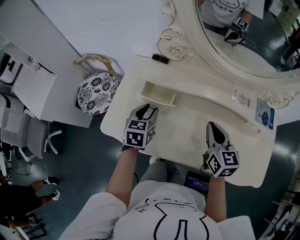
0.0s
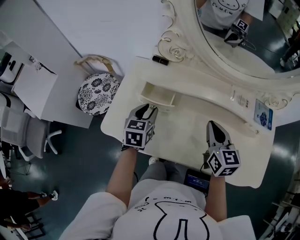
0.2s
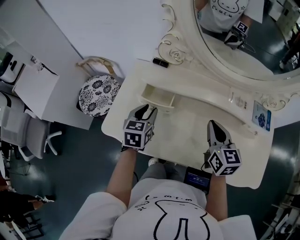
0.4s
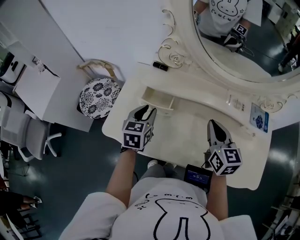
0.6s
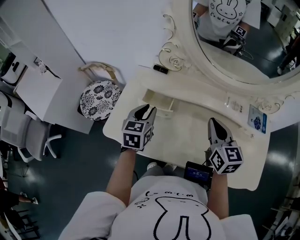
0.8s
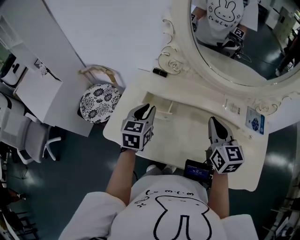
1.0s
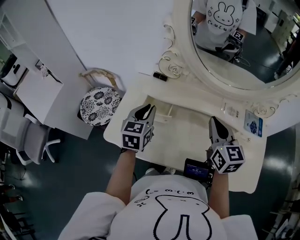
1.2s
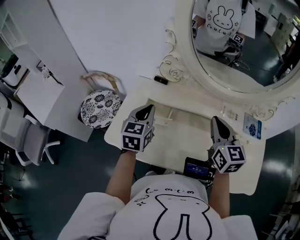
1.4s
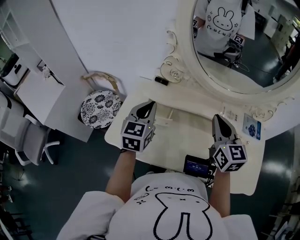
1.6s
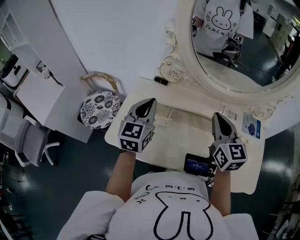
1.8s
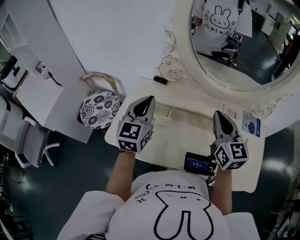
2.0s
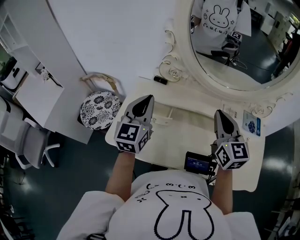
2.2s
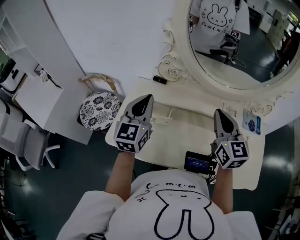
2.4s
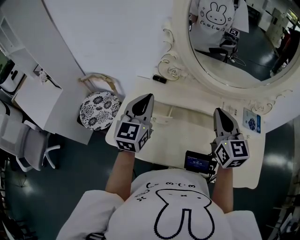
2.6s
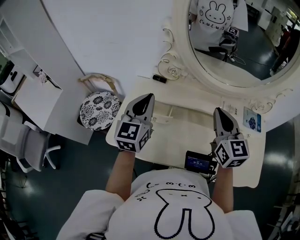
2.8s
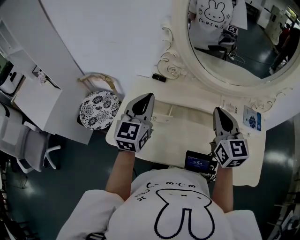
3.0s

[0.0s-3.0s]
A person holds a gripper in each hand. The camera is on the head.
0.0s to 1.6s: Both grippers move upward, some 15 cm. The left gripper changes its angle by approximately 20 degrees, and closes.
1.6s to 3.0s: The grippers stay close to where they were, moving slightly.

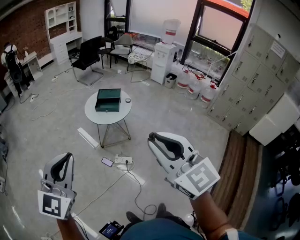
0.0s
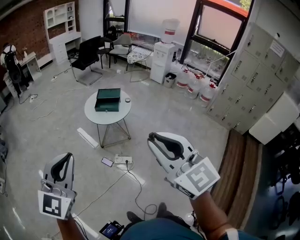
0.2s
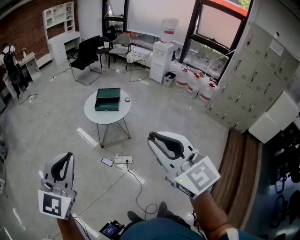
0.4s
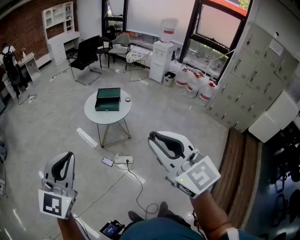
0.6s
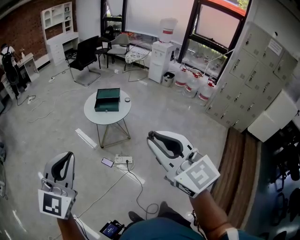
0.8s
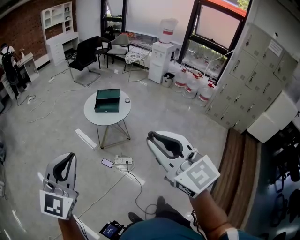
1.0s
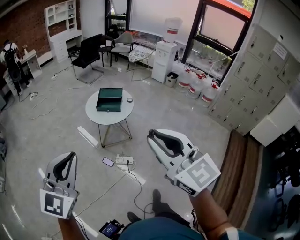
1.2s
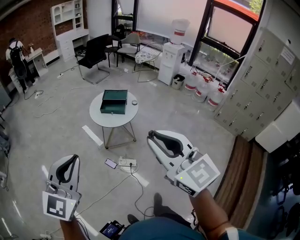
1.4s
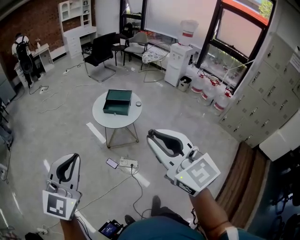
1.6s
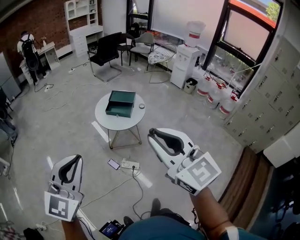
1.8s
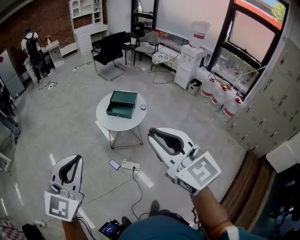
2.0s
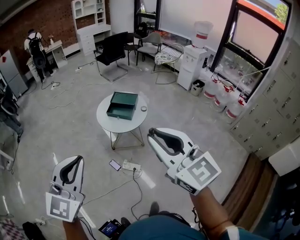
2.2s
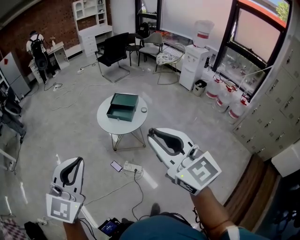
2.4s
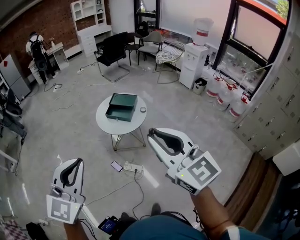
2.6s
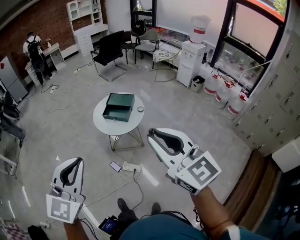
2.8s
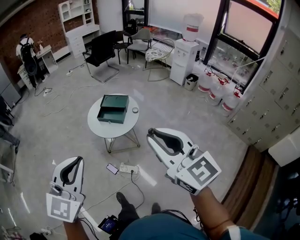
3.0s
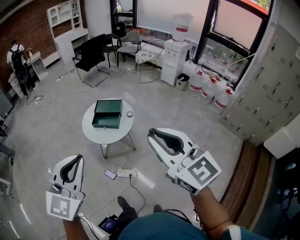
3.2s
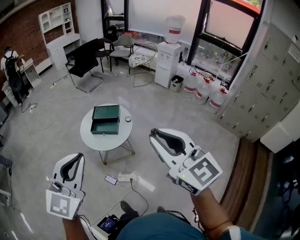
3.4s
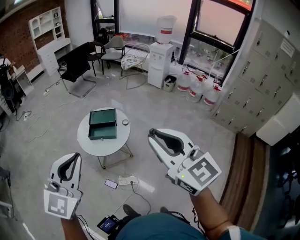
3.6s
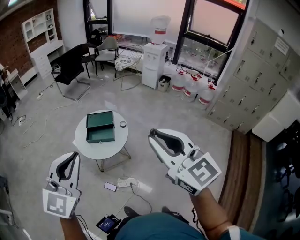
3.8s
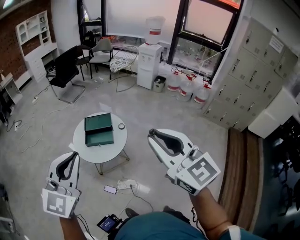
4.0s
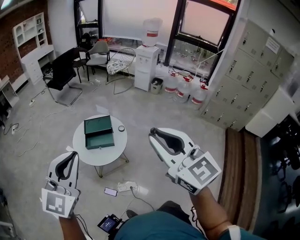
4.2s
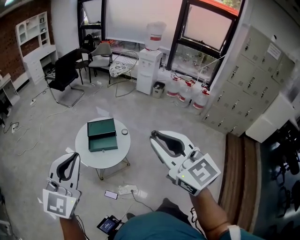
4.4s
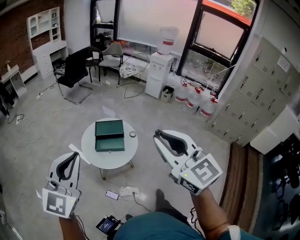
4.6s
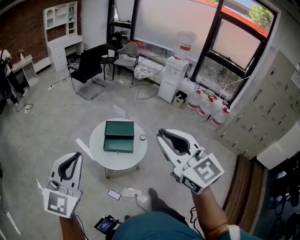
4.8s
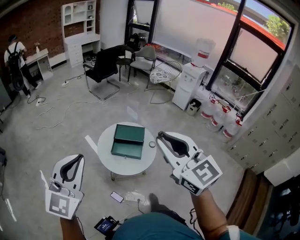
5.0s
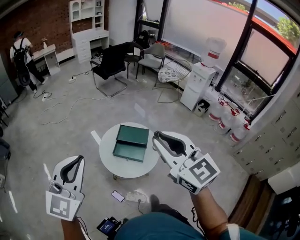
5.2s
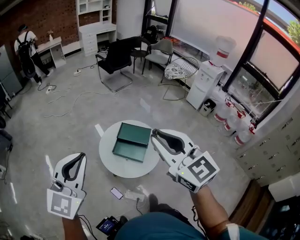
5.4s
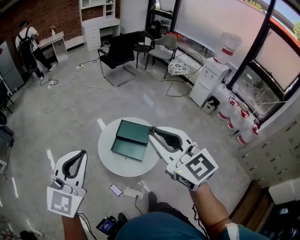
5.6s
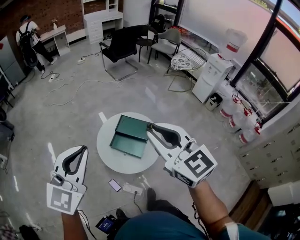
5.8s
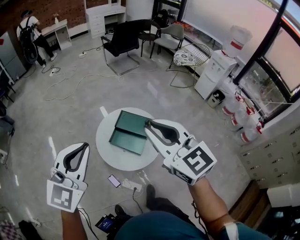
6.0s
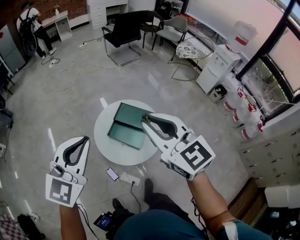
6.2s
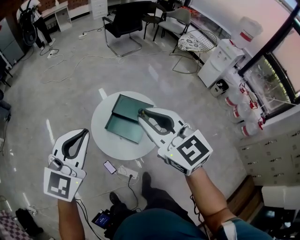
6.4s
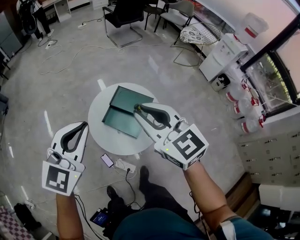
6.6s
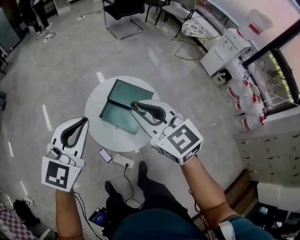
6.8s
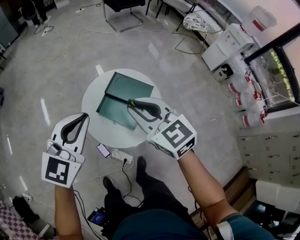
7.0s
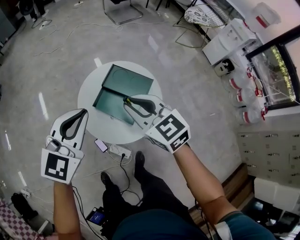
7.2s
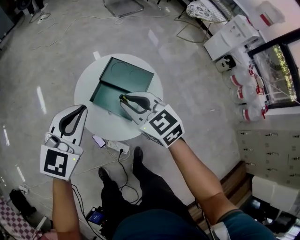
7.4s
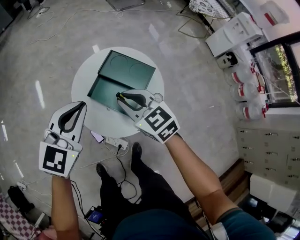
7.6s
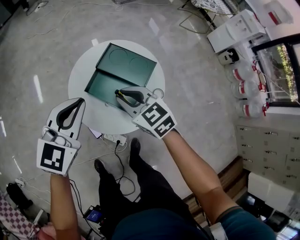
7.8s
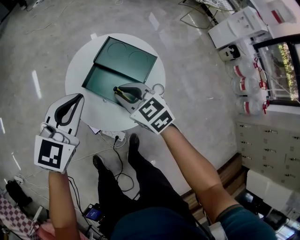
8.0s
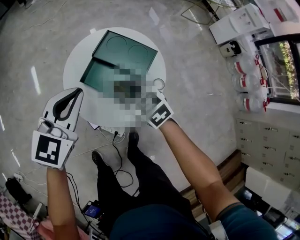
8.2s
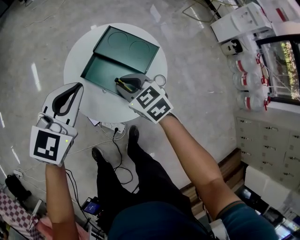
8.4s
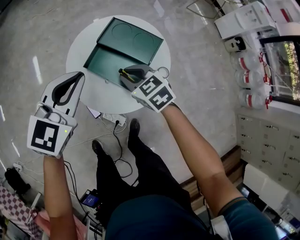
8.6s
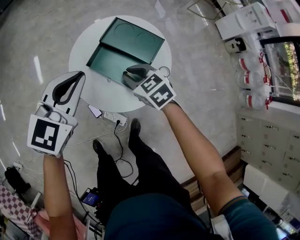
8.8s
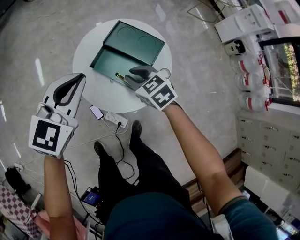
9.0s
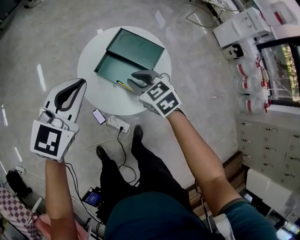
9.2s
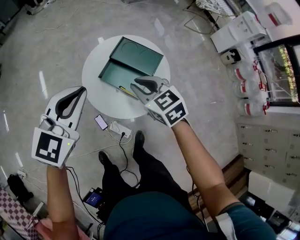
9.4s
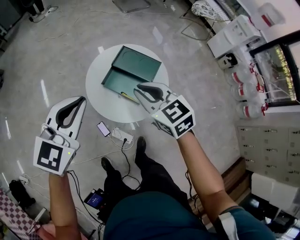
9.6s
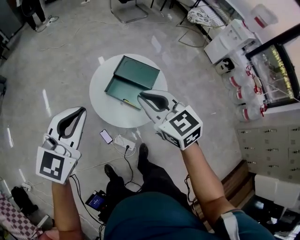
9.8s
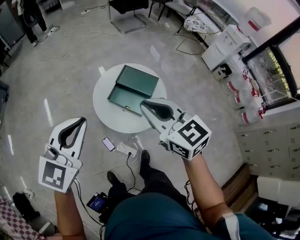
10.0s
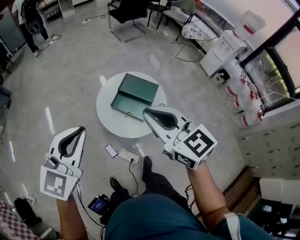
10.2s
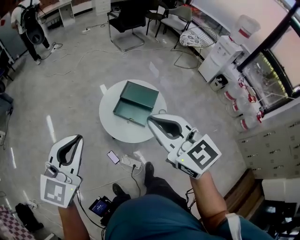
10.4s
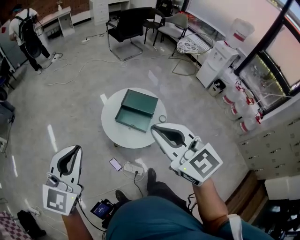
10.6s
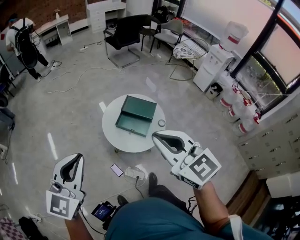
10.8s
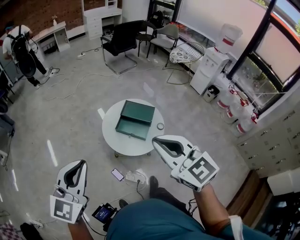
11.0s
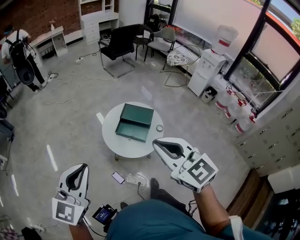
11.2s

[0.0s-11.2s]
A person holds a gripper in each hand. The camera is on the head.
0.0s to 1.6s: Both grippers travel together forward, roughly 15 cm.
1.6s to 3.2s: The two grippers go about 30 cm to the right and forward.
3.2s to 4.8s: The two grippers go about 40 cm to the left and forward.
4.8s to 6.4s: The left gripper shifts some 40 cm forward, to the right and downward, and turns by roughly 20 degrees, while the right gripper heads forward and downward, covering roughly 40 cm, and swivels some 30 degrees.
6.4s to 8.0s: Both grippers travel together downward, approximately 40 cm. The right gripper turns by roughly 30 degrees.
8.0s to 9.6s: The left gripper is displaced upward, backward and to the left by some 25 cm; the right gripper shifts approximately 25 cm upward and backward.
9.6s to 11.2s: The left gripper is displaced backward, upward and to the left by roughly 40 cm, while the right gripper goes about 40 cm upward and backward.

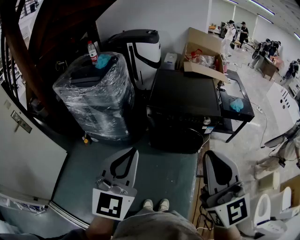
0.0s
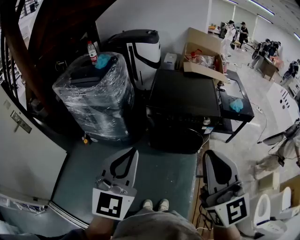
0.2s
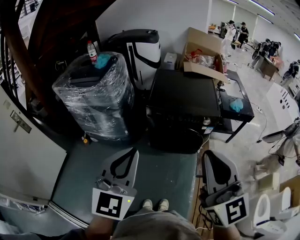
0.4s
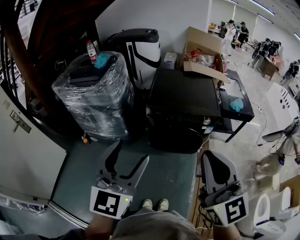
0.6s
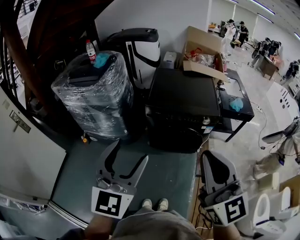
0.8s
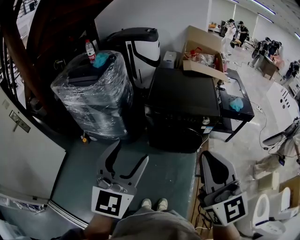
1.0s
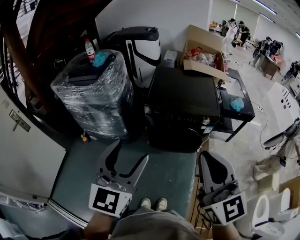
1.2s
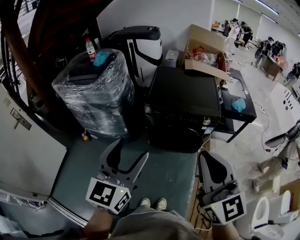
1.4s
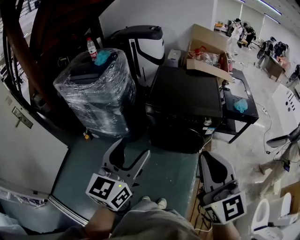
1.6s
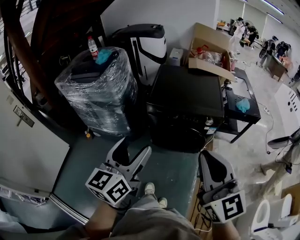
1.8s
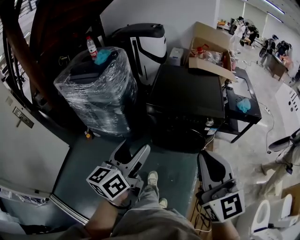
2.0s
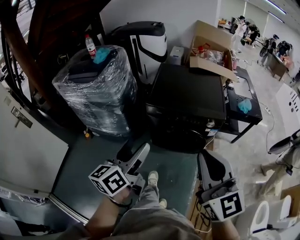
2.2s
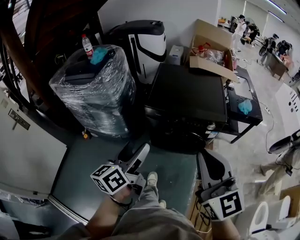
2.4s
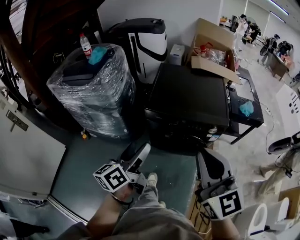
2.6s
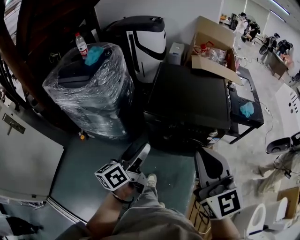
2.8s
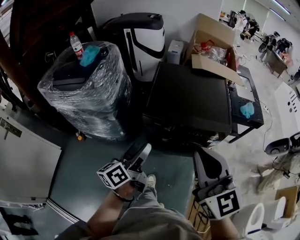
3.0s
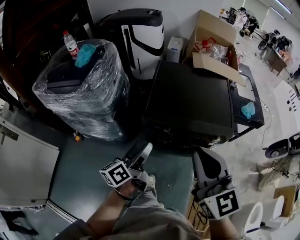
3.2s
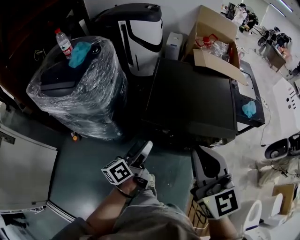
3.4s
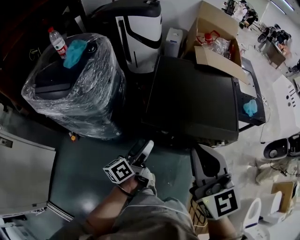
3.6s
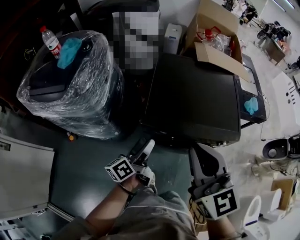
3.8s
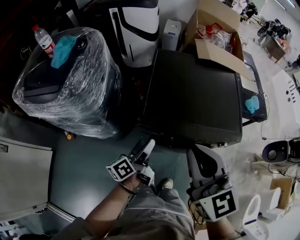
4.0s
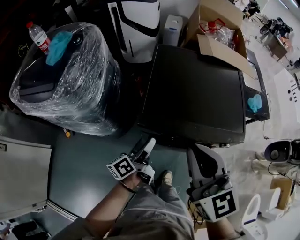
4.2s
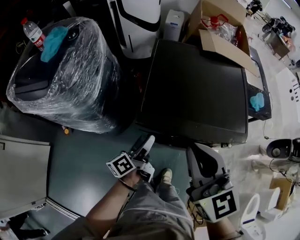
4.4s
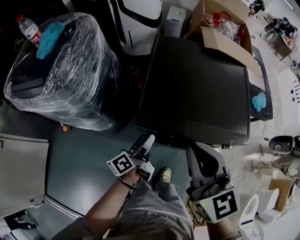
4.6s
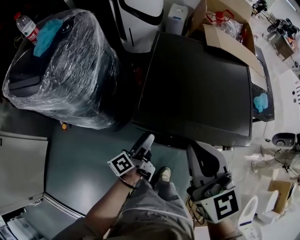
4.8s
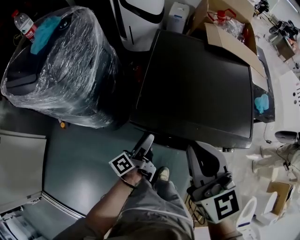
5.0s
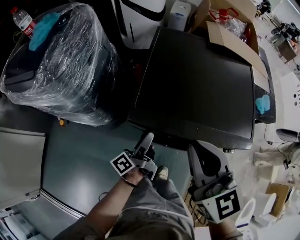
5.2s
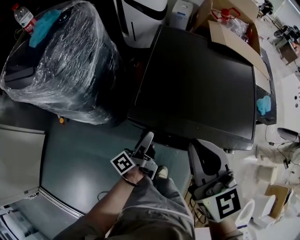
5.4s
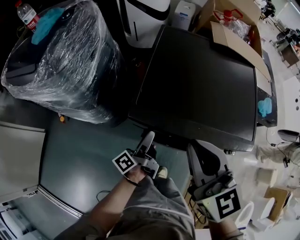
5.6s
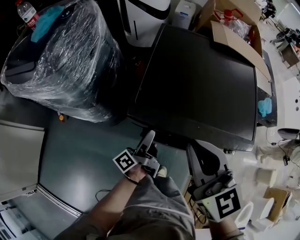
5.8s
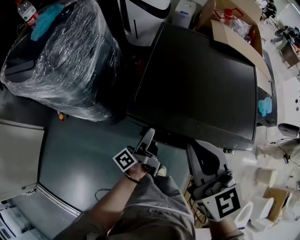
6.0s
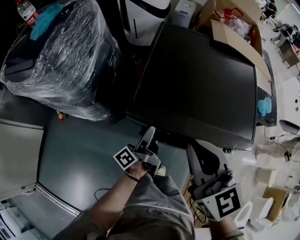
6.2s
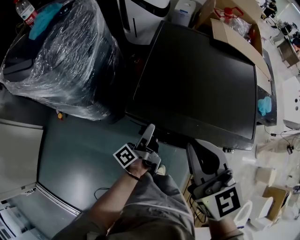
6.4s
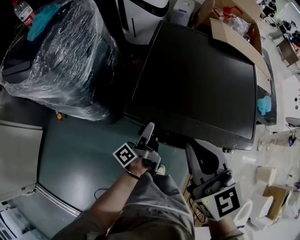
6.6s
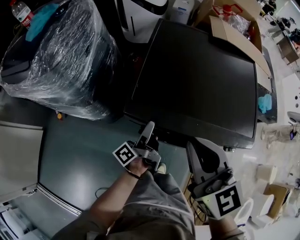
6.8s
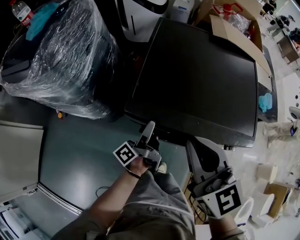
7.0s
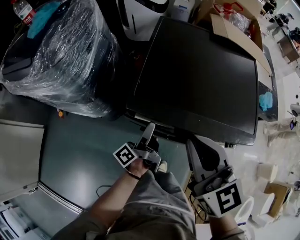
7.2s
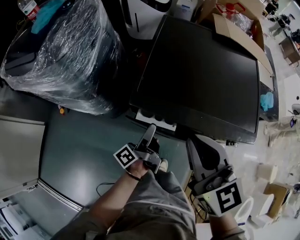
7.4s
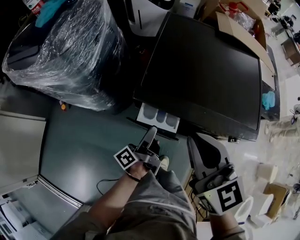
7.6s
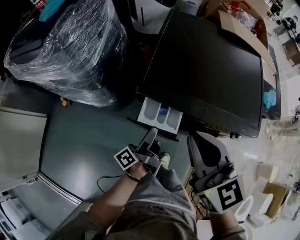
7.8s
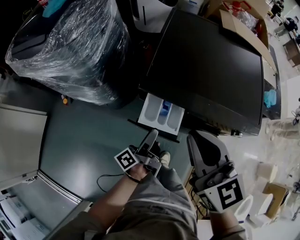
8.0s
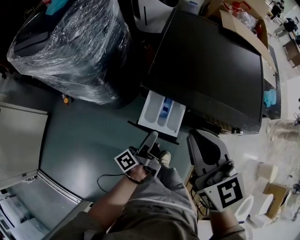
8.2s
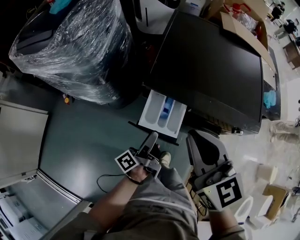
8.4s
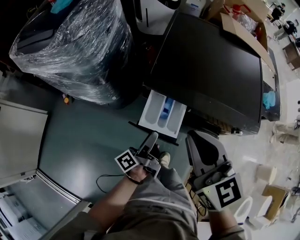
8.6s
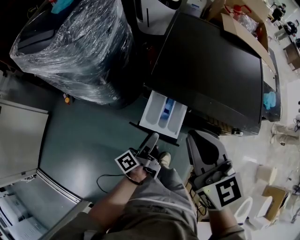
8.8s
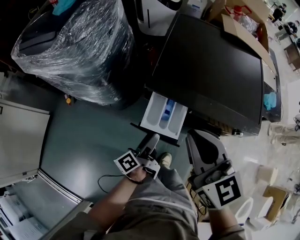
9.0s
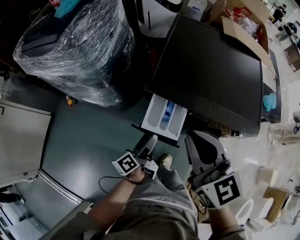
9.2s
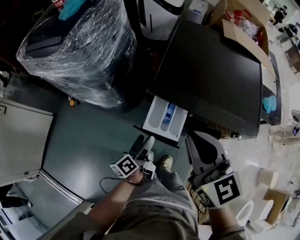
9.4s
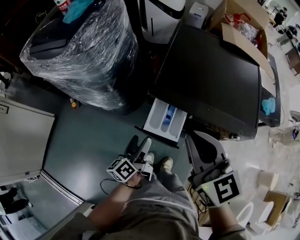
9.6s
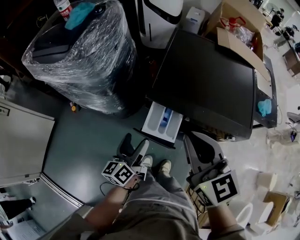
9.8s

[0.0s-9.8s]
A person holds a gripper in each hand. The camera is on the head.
0.0s to 1.4s: The right gripper changes place by roughly 5 cm, while the left gripper ends up about 5 cm from where it was, and opens up.
1.4s to 2.8s: The right gripper travels forward by some 15 cm. The left gripper heads forward and downward, covering some 25 cm, and twists approximately 50 degrees counterclockwise, seen from behind.
2.8s to 4.2s: Both grippers move forward and downward, roughly 25 cm. The left gripper turns by about 20 degrees.
4.2s to 5.6s: Both grippers travel together downward, roughly 10 cm. The left gripper turns by roughly 20 degrees.
5.6s to 7.0s: There are only small adjustments of the grippers.
7.0s to 8.4s: The left gripper travels backward by about 15 cm, while the right gripper is displaced backward by roughly 5 cm.
8.4s to 9.8s: The left gripper travels upward and to the left by approximately 10 cm, and rotates around the line of its fingers by some 40 degrees, clockwise from behind. The right gripper goes roughly 5 cm upward.
